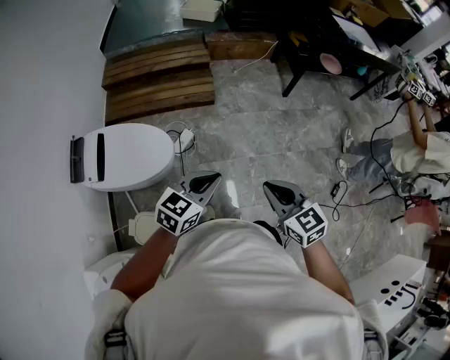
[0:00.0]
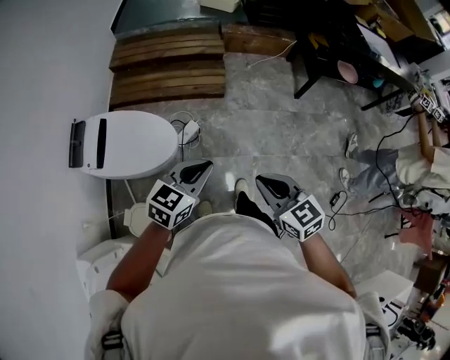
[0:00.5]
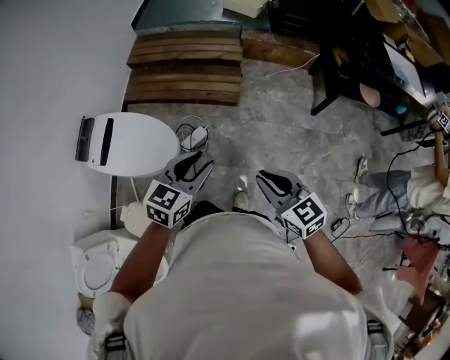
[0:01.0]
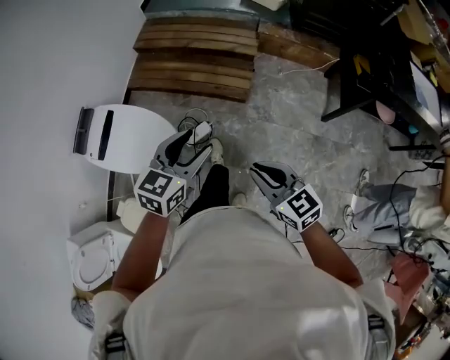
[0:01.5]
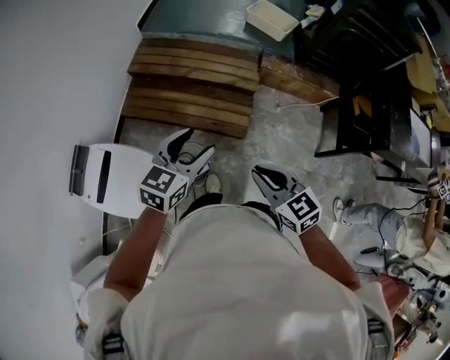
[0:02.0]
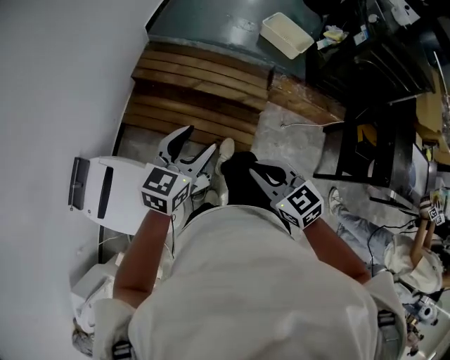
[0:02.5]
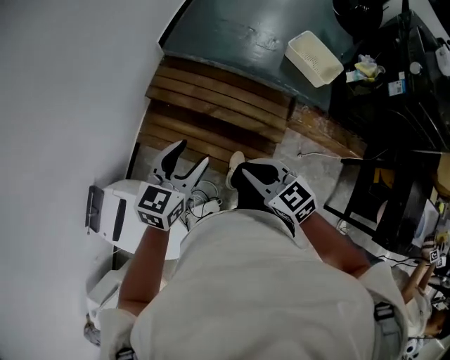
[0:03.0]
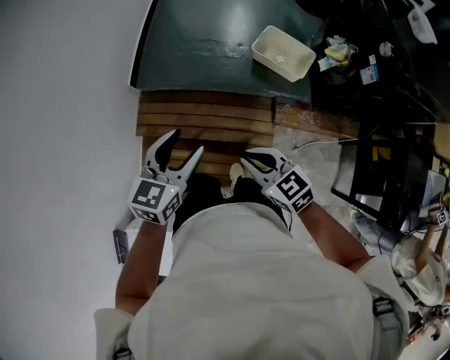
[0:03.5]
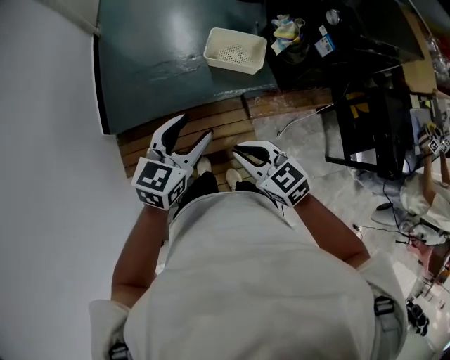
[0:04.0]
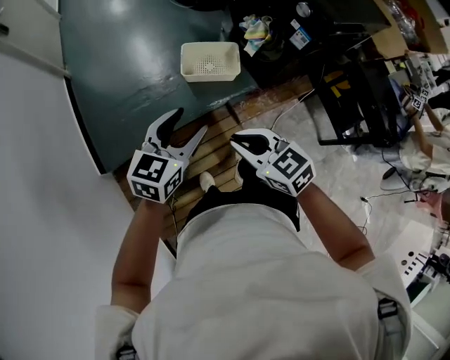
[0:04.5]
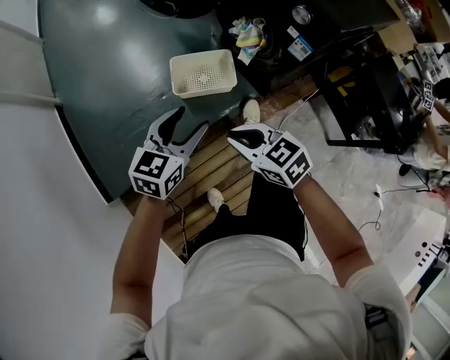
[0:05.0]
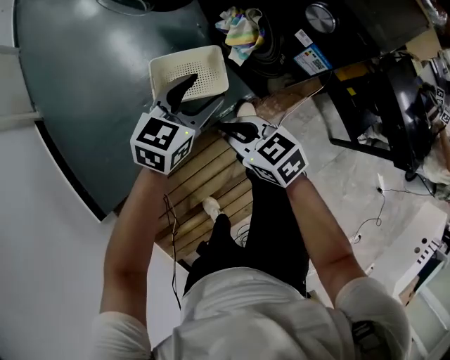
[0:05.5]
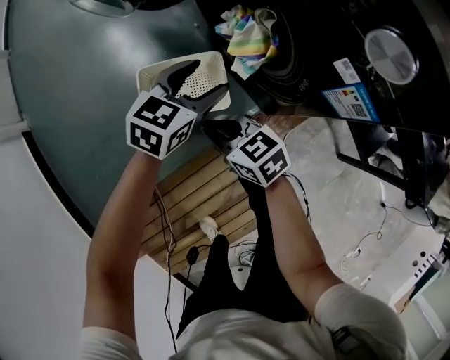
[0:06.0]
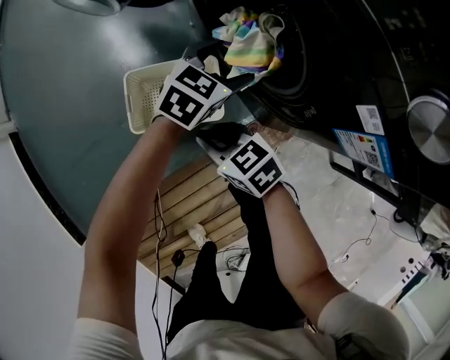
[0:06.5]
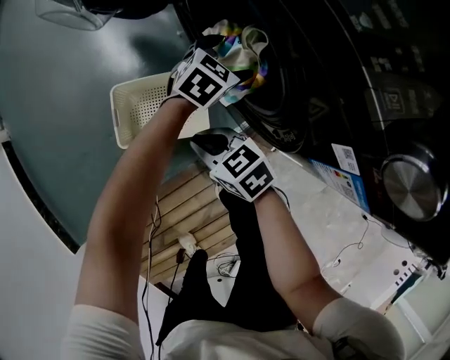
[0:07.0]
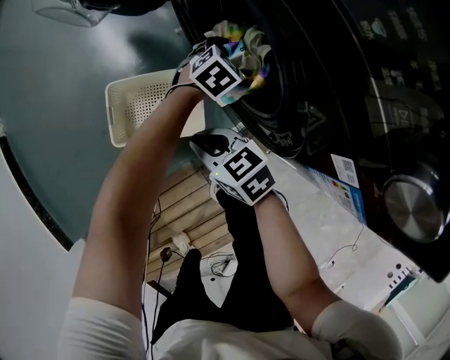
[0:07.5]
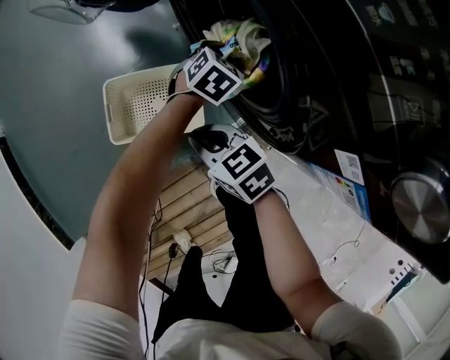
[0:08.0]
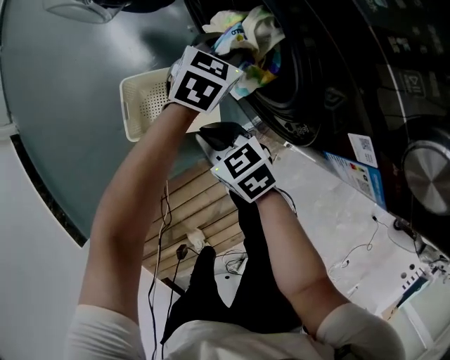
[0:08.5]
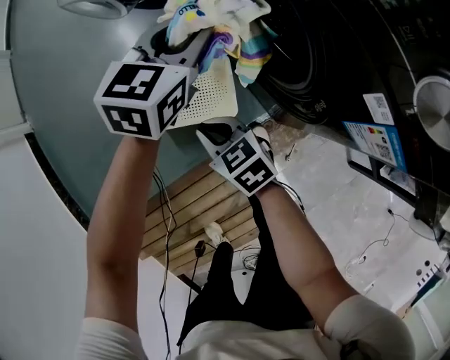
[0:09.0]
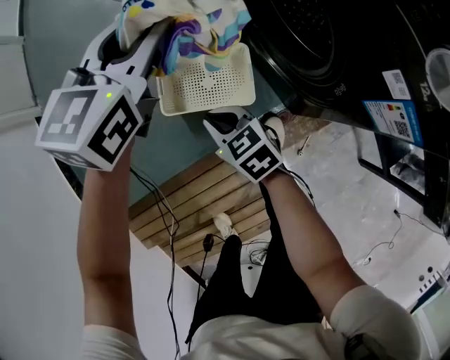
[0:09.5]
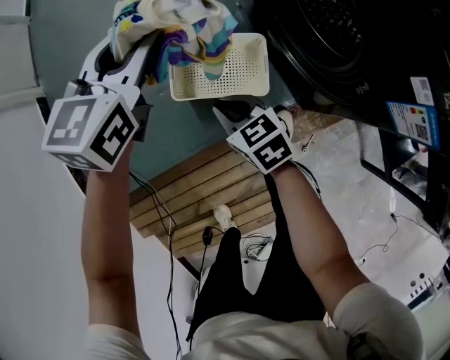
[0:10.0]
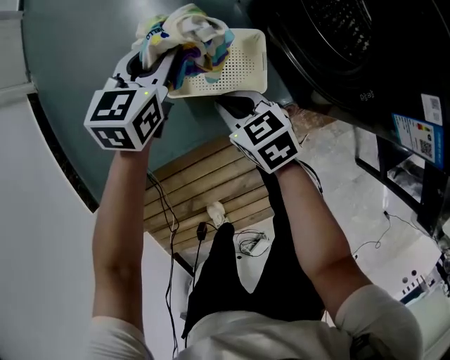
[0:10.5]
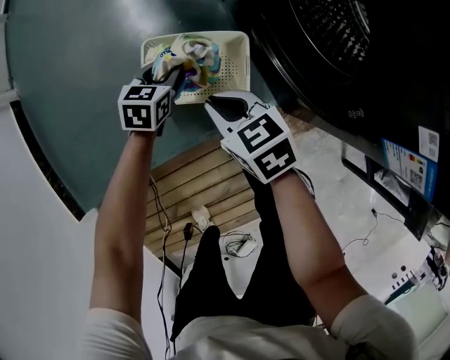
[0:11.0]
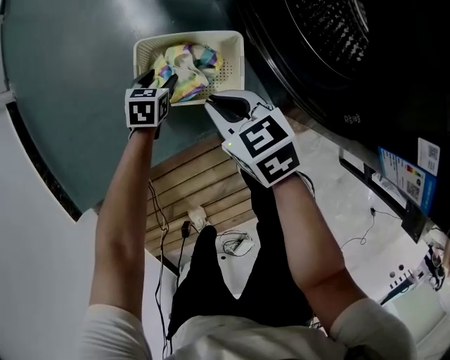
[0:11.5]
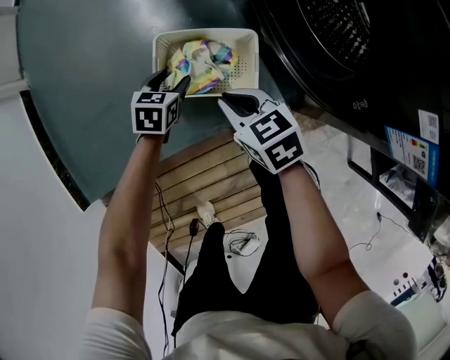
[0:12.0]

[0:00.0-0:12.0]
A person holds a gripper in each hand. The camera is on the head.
0:00.0 to 0:02.0: Both grippers are carried approximately 50 cm. The left gripper changes its angle by about 30 degrees, and opens up. Meanwhile the right gripper rotates about 20 degrees.
0:02.0 to 0:04.0: Both grippers are carried about 70 cm. The left gripper turns by about 20 degrees.
0:04.0 to 0:06.0: Both grippers are carried forward, approximately 50 cm. Both grippers travel together downward, roughly 30 cm. The right gripper swivels approximately 30 degrees. The left gripper turns by roughly 30 degrees.
0:06.0 to 0:08.0: The left gripper shifts approximately 25 cm downward, forward and to the right, turns by some 20 degrees, and closes. The right gripper shifts about 10 cm downward, forward and to the right.
0:08.0 to 0:10.0: The left gripper travels to the left and upward by about 40 cm, and turns by about 40 degrees, while the right gripper heads to the left, covering some 15 cm.
0:10.0 to 0:12.0: The right gripper shifts approximately 5 cm to the right; the left gripper is displaced downward by about 30 cm, tilts its fingers some 30 degrees downward, and opens its fingers.

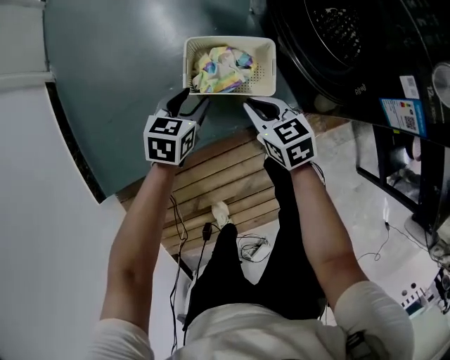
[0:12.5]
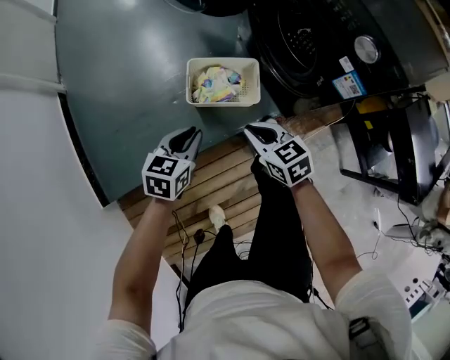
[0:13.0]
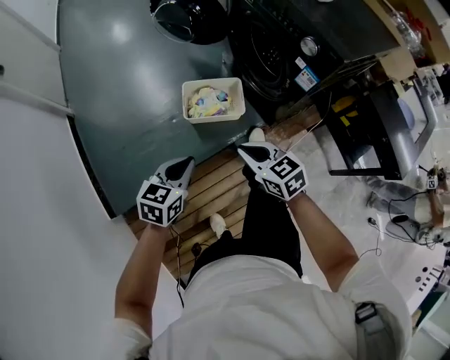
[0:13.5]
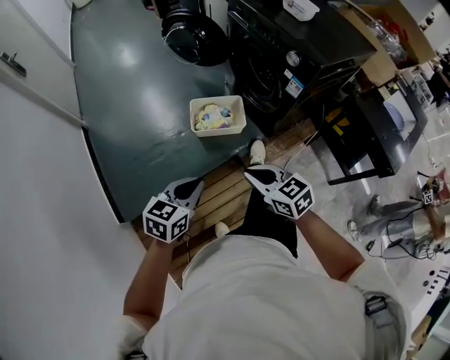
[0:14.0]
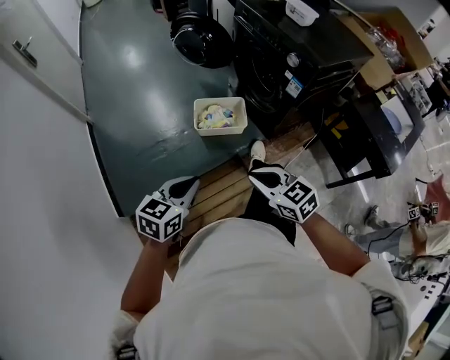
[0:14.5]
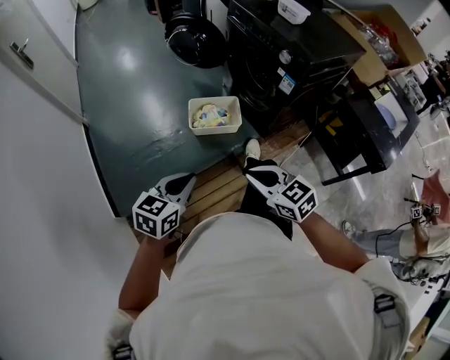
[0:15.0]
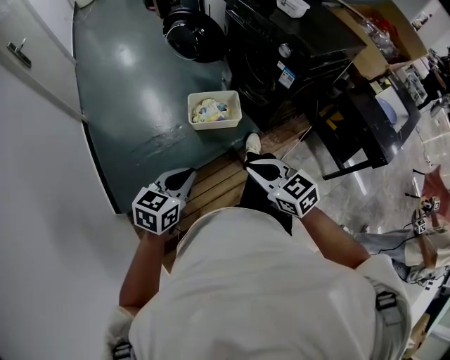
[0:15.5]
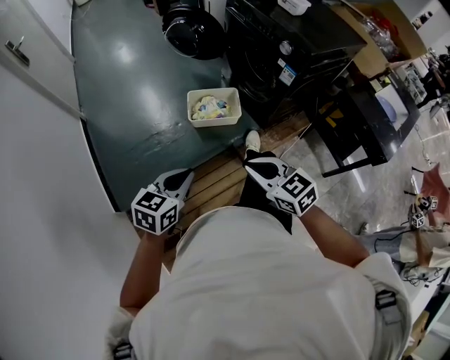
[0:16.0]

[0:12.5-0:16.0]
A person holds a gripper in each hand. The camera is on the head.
0:12.5 to 0:14.5: Both grippers move backward and upward, some 60 cm. The left gripper changes its angle by some 20 degrees, and closes up.
0:14.5 to 0:16.0: There are only small adjustments of the grippers.

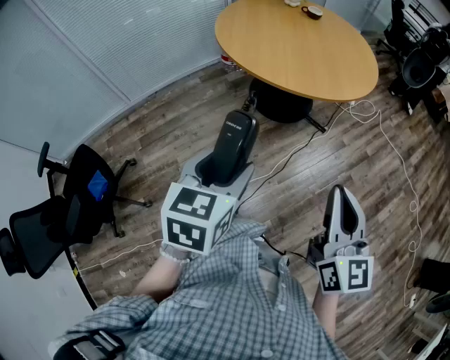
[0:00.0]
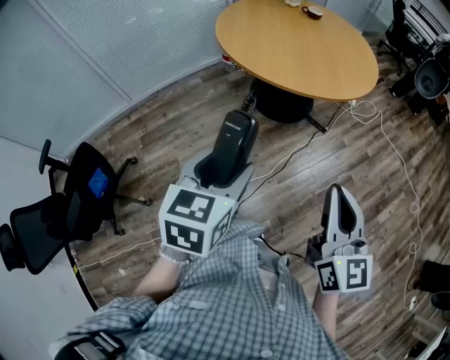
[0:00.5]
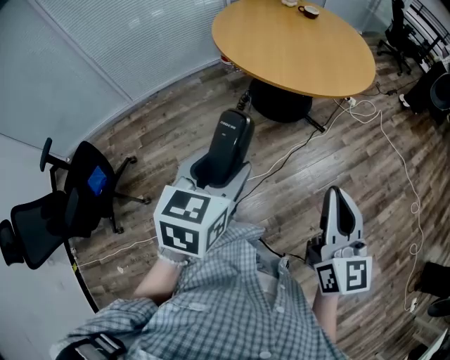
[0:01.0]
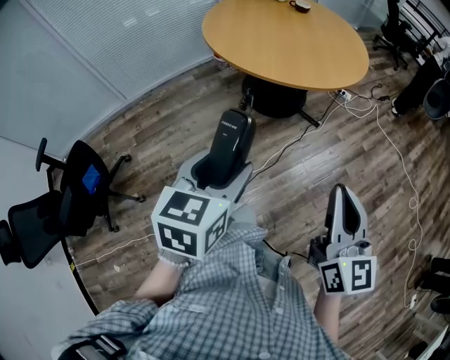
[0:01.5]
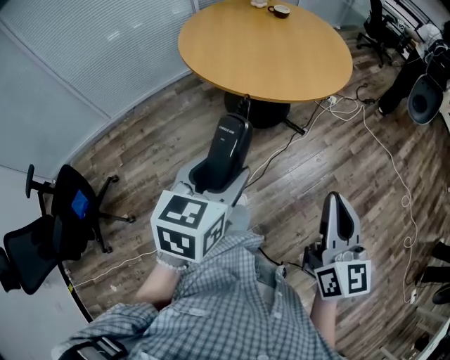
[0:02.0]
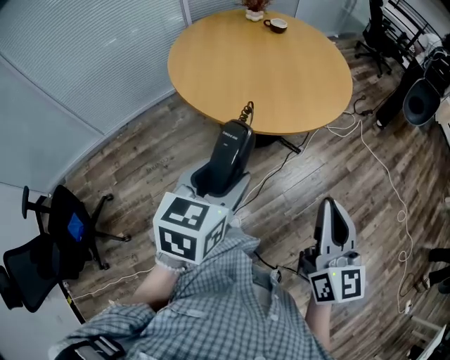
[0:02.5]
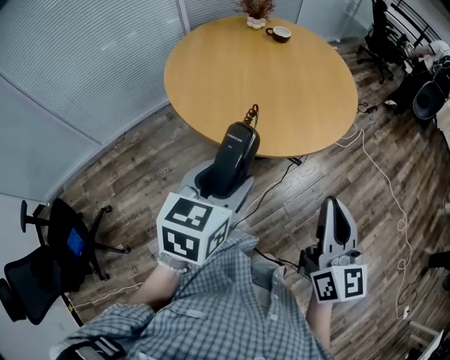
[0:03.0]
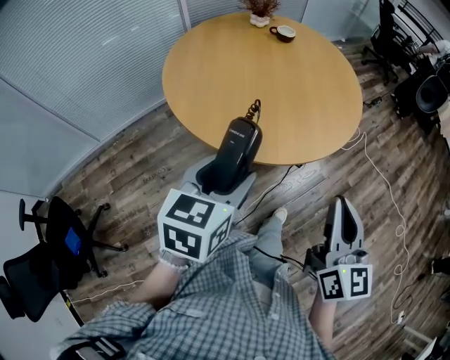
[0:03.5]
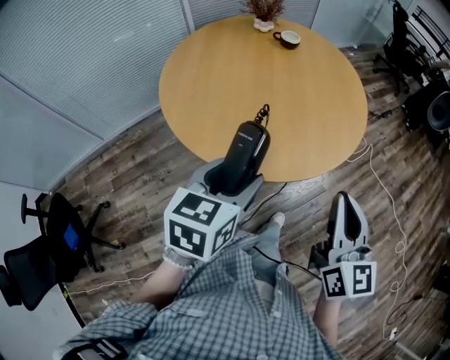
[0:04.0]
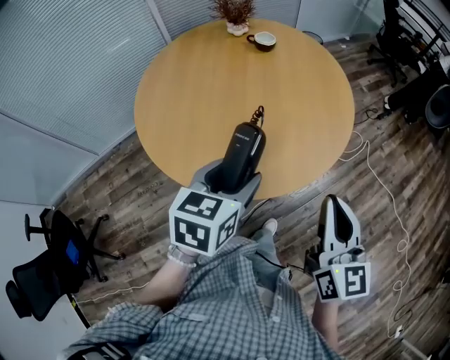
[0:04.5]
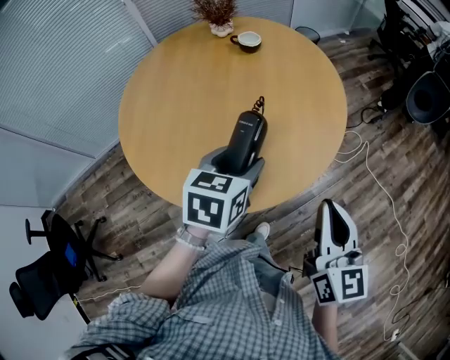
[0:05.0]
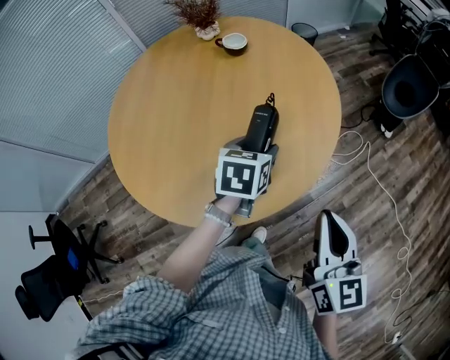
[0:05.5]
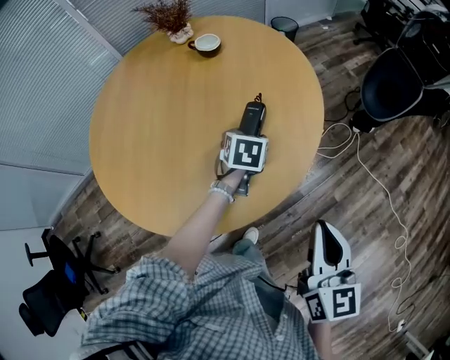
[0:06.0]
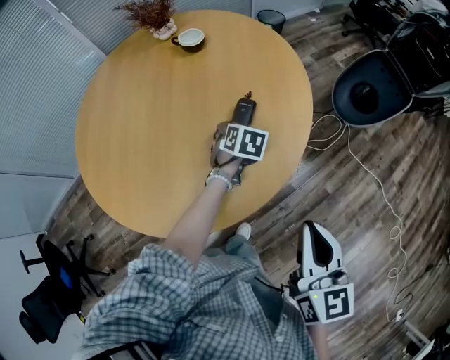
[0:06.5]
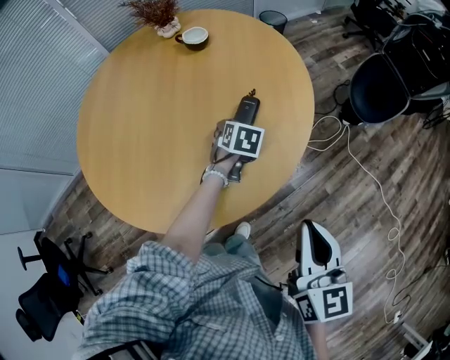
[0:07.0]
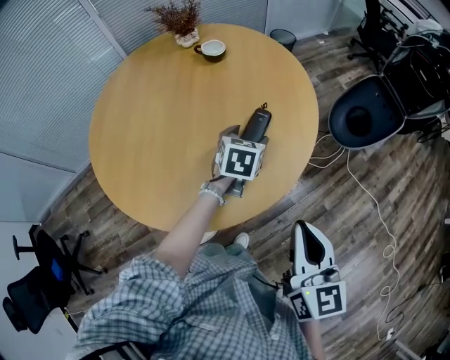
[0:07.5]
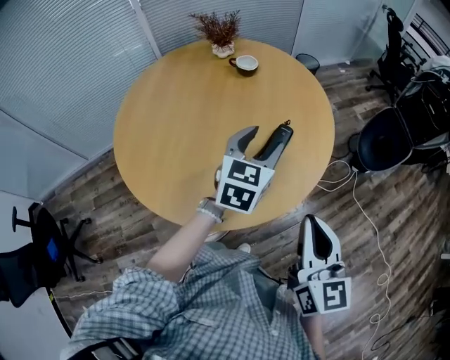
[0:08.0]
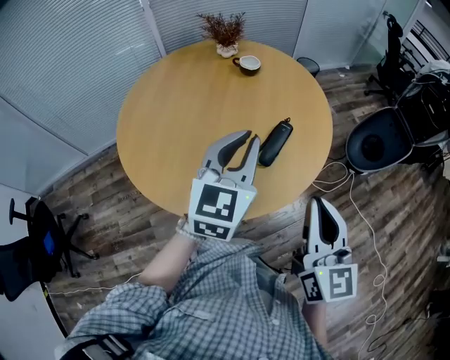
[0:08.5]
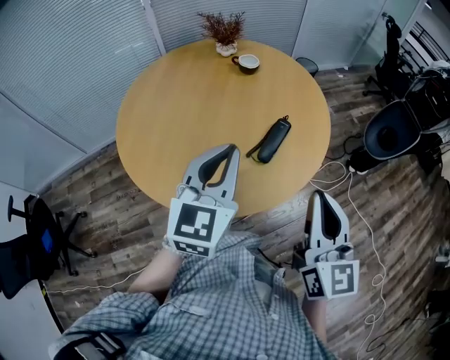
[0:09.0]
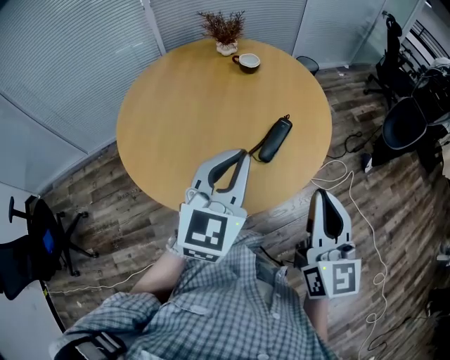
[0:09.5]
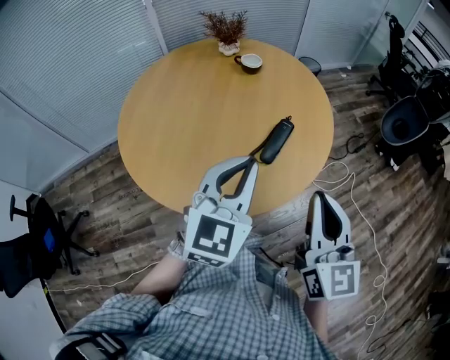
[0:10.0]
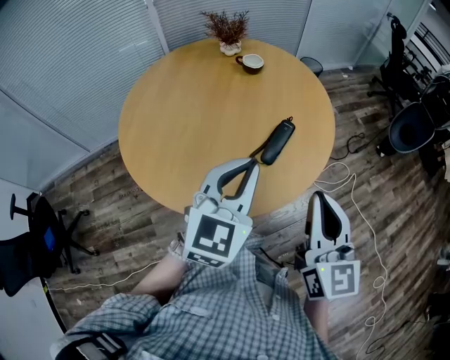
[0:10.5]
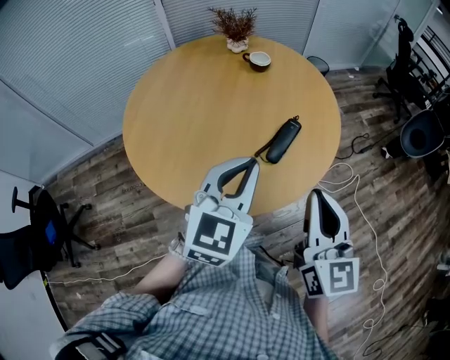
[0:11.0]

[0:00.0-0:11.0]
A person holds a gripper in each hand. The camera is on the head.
0:00.0 to 0:02.0: The grippers both shift to the right by approximately 10 cm.
0:02.0 to 0:03.5: Both grippers travel together forward, some 25 cm.
0:03.5 to 0:05.5: The grippers both shift forward and to the right by approximately 40 cm.
0:05.5 to 0:07.5: The left gripper goes about 5 cm forward, and travels downward and back again, some 15 cm each way.
0:07.5 to 0:09.0: The right gripper shifts roughly 10 cm upward, while the left gripper travels upward, backward and to the left by some 30 cm, points its fingers roughly 30 degrees further upward, and closes its fingers.
0:09.0 to 0:11.0: The grippers make only small movements.
